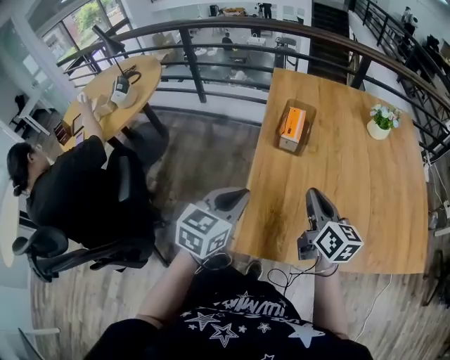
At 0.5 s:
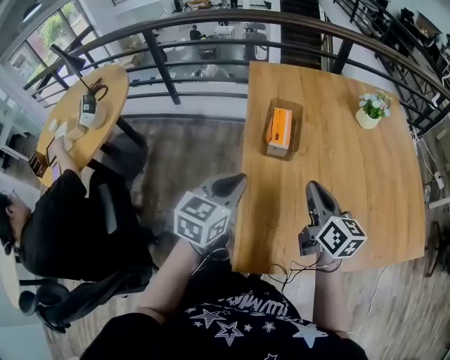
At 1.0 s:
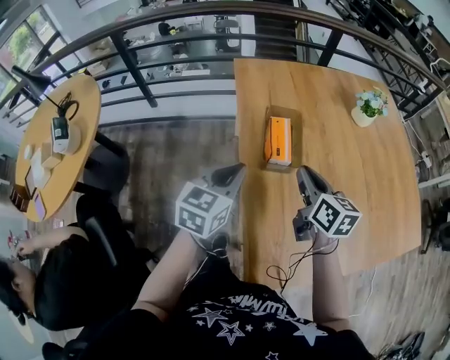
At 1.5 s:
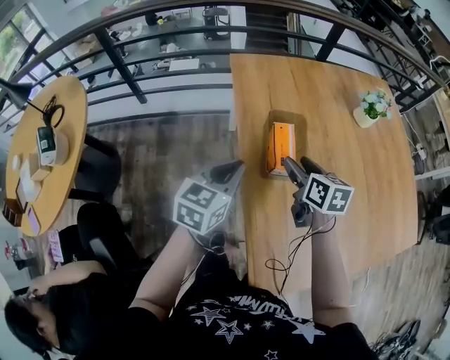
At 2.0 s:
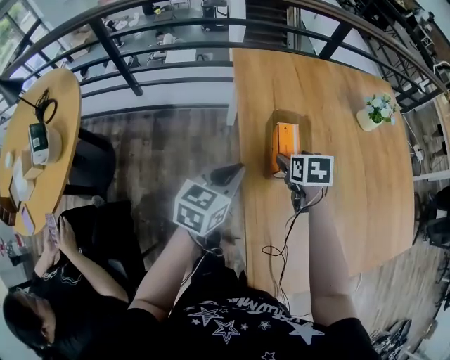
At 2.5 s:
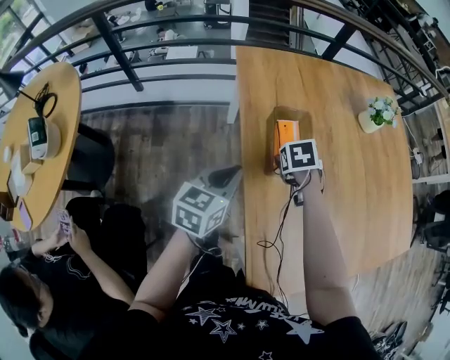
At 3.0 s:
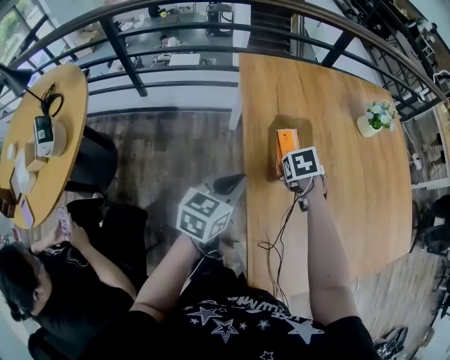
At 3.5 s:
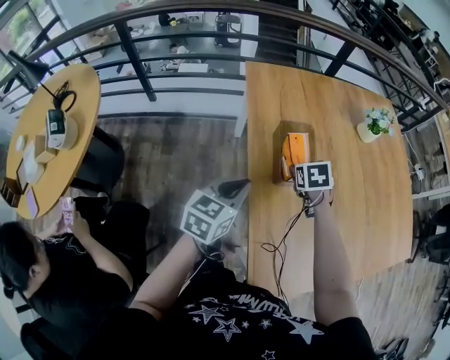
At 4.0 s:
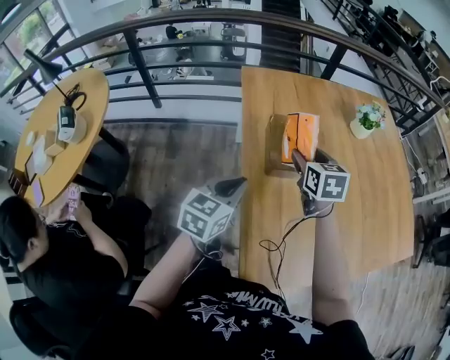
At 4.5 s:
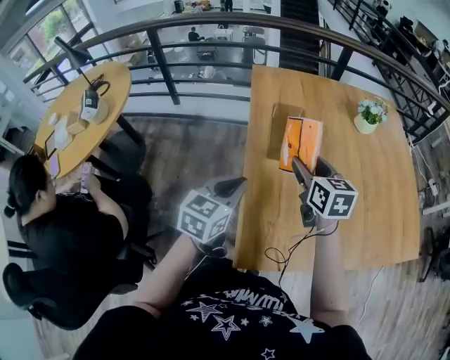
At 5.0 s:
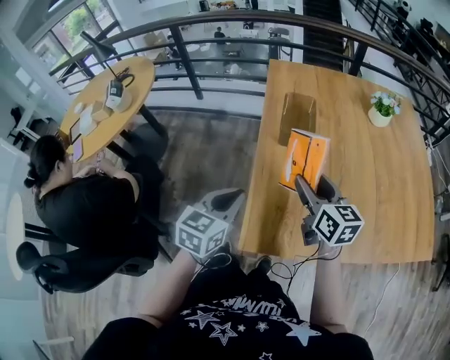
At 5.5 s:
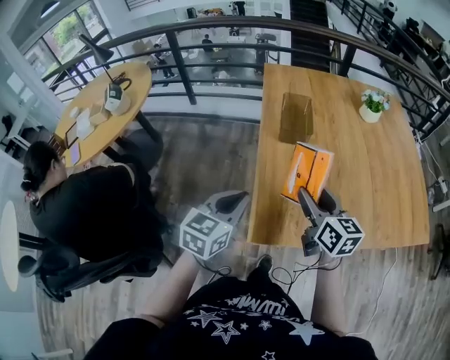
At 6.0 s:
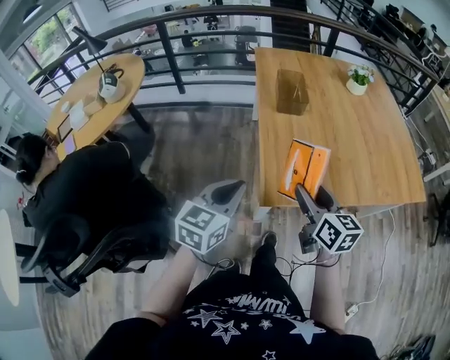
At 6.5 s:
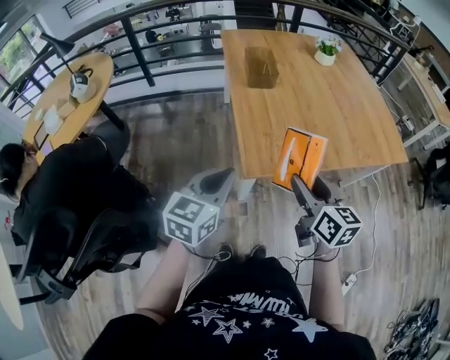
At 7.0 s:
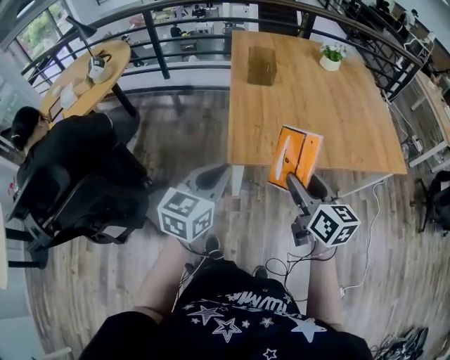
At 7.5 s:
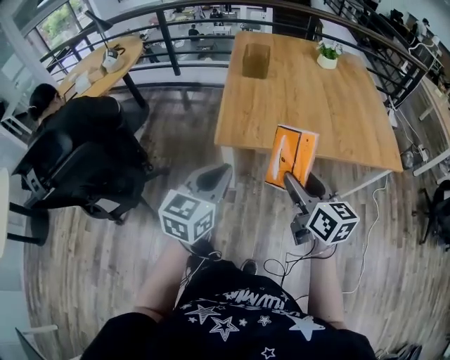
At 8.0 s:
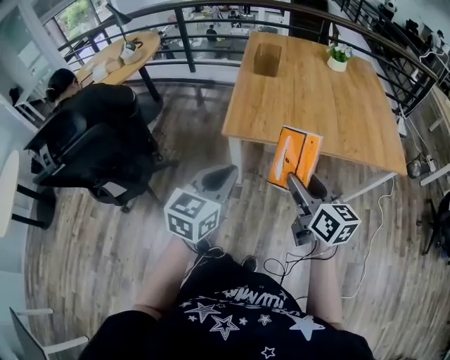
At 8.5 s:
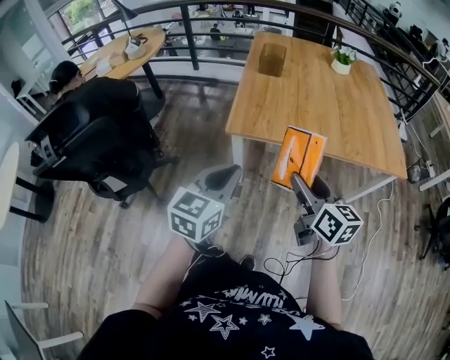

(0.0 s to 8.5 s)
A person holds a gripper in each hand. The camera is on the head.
0.0 s - 2.0 s: Both grippers move forward and to the left, approximately 35 cm. The right gripper tips its fingers downward by approximately 50 degrees, and opens up.
2.0 s - 4.0 s: The right gripper shifts some 15 cm upward, backward and to the right, and swivels roughly 20 degrees; the left gripper goes some 15 cm backward and to the right.
4.0 s - 6.5 s: The pair of grippers is taken backward, about 50 cm. The right gripper turns by about 30 degrees.
6.5 s - 8.5 s: The grippers both shift backward and to the right by some 30 cm.

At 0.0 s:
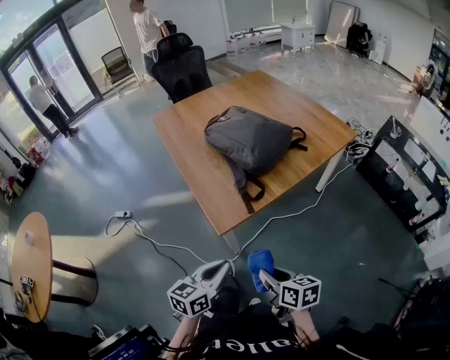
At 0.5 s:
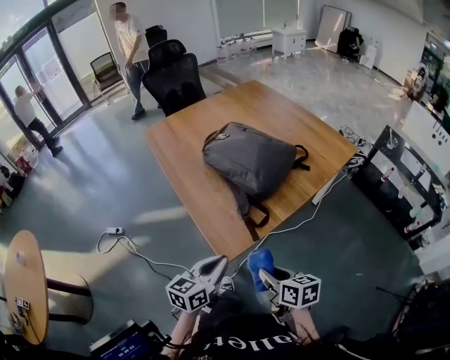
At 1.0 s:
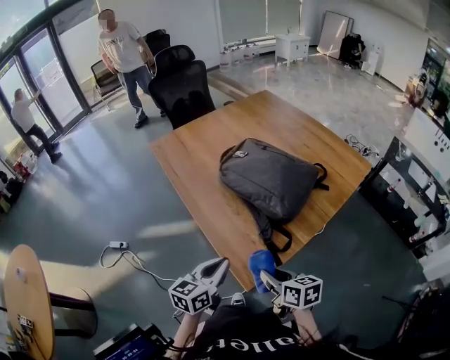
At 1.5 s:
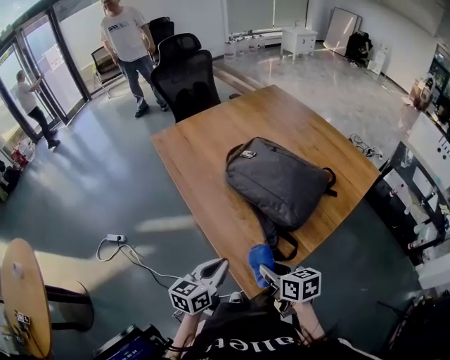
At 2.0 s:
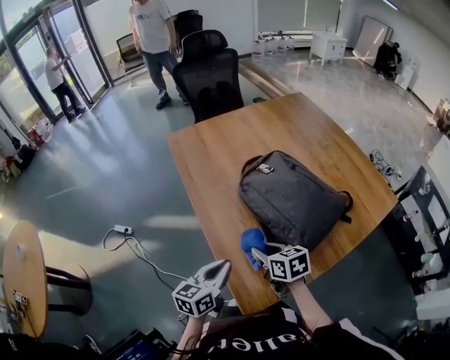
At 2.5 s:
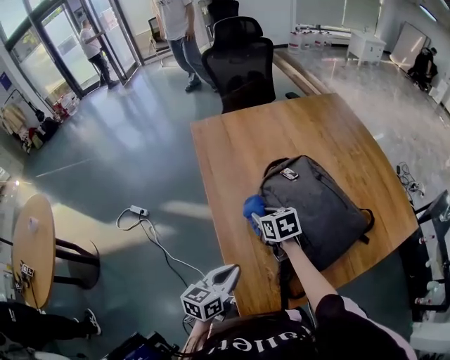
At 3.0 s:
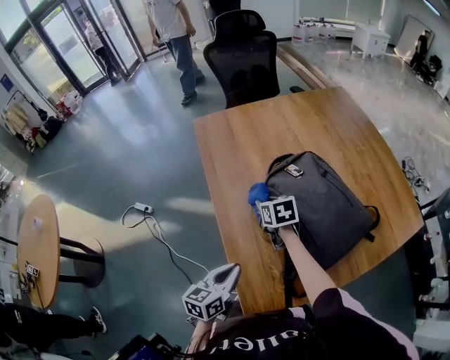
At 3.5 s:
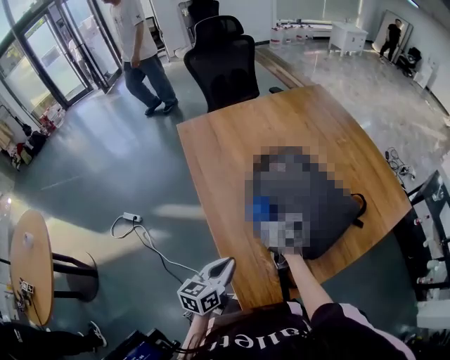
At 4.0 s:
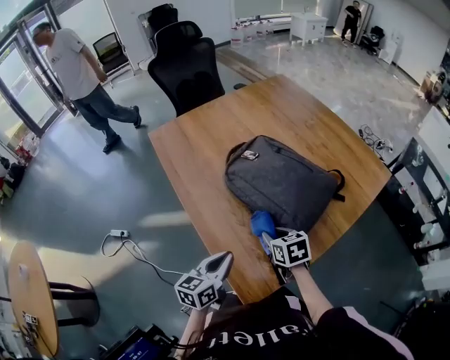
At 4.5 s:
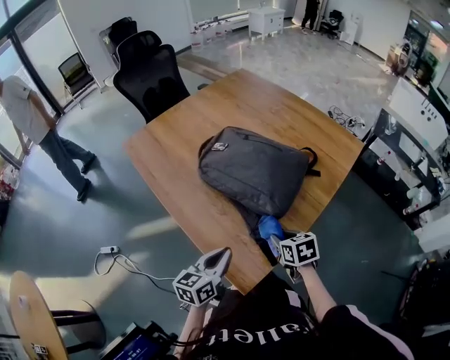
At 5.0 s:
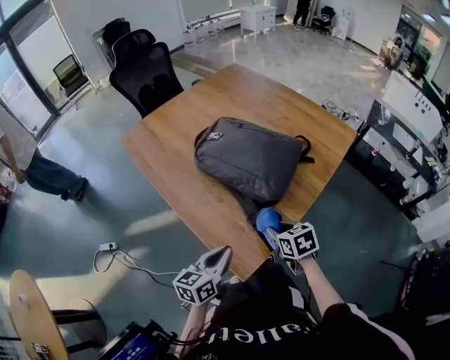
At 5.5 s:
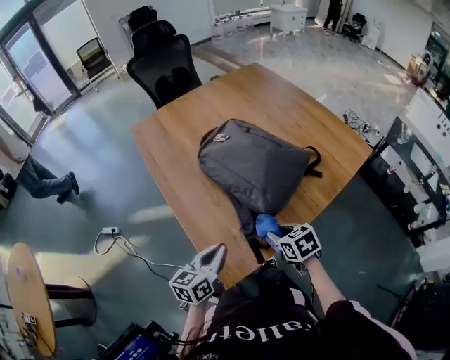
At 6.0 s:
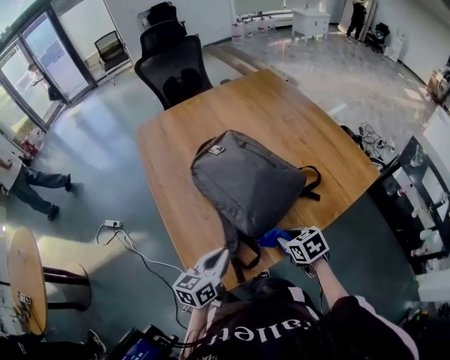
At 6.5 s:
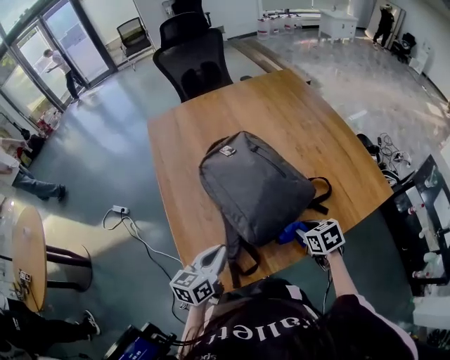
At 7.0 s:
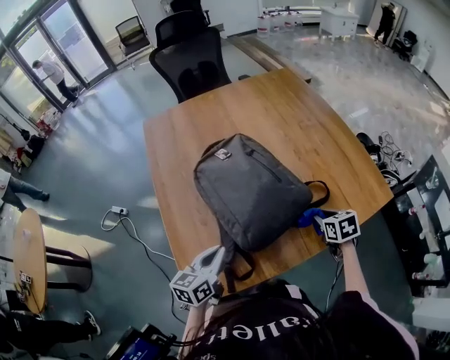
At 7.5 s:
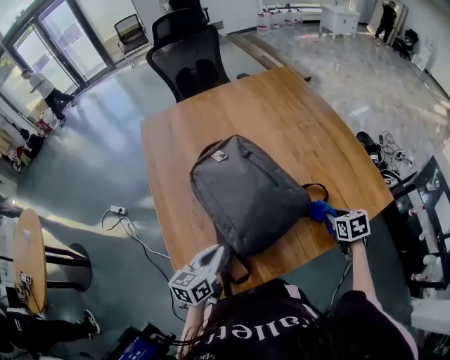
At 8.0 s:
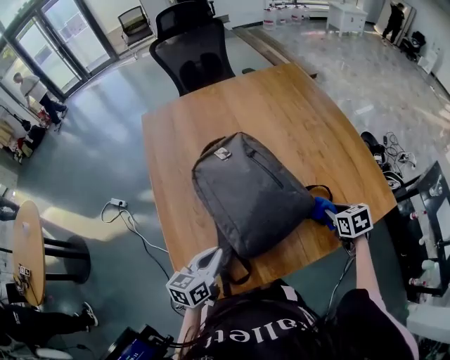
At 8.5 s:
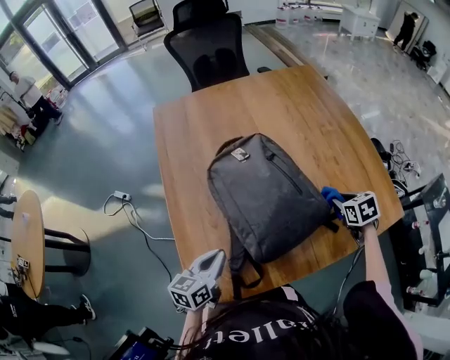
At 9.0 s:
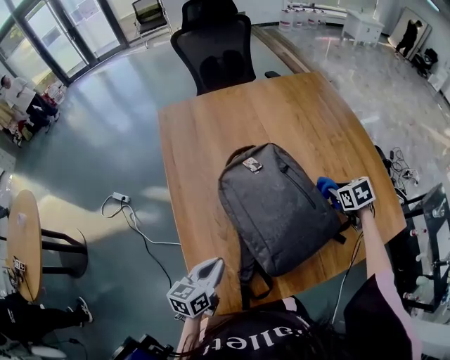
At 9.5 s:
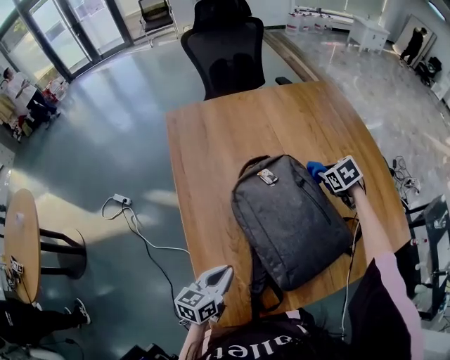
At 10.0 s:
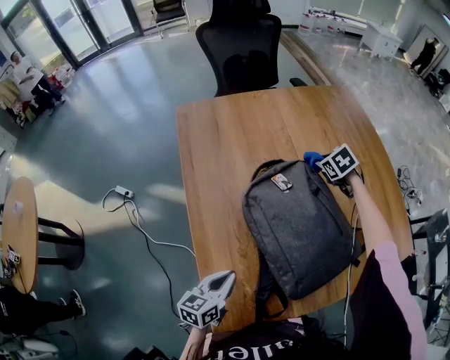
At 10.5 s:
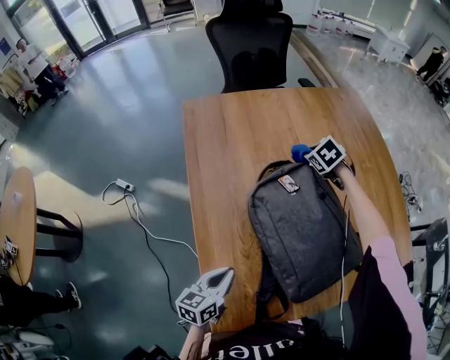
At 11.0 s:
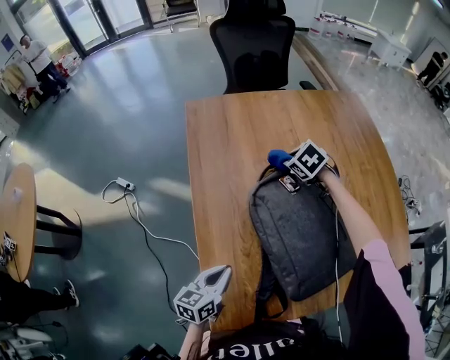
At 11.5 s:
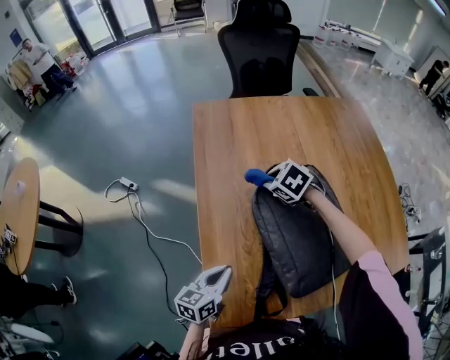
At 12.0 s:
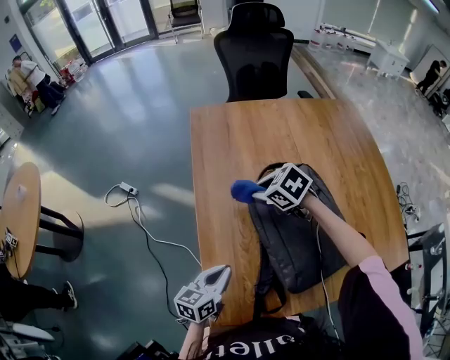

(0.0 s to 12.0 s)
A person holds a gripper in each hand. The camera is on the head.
0.0 s - 2.0 s: Both grippers travel together forward, approximately 40 cm. The right gripper rotates about 20 degrees.
2.0 s - 4.0 s: The right gripper travels to the right by some 5 cm, and goes forward and returns, some 20 cm each way.
4.0 s - 6.0 s: The grippers both shift to the right by some 20 cm.
6.0 s - 8.0 s: The left gripper goes some 5 cm forward; the right gripper heads to the right and forward, covering about 25 cm.
8.0 s - 10.0 s: The left gripper moves to the left, about 15 cm. Meanwhile the right gripper heads forward and to the left, covering roughly 40 cm, and turns by approximately 30 degrees.
10.0 s - 12.0 s: The right gripper moves some 30 cm, and turns by about 30 degrees.

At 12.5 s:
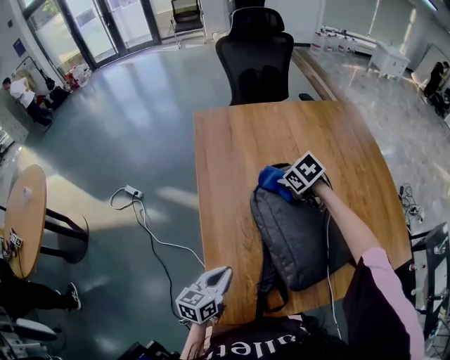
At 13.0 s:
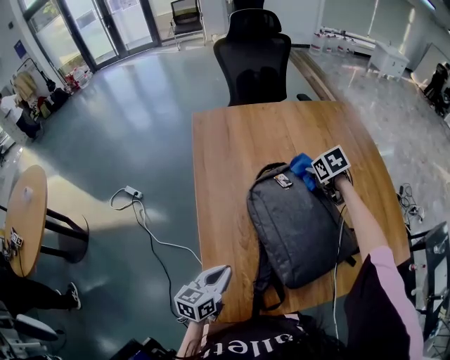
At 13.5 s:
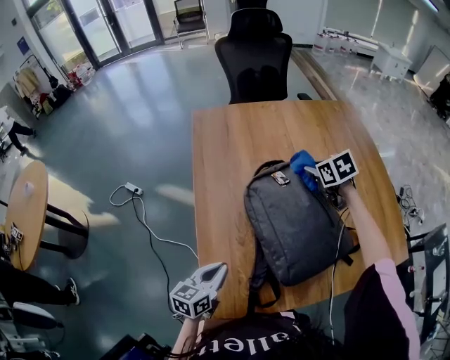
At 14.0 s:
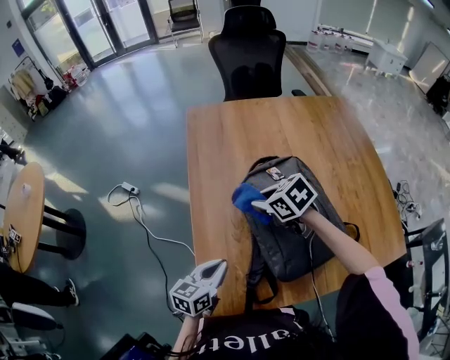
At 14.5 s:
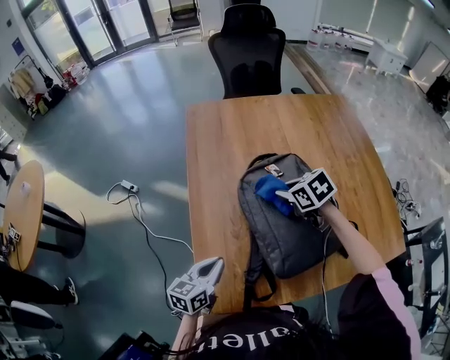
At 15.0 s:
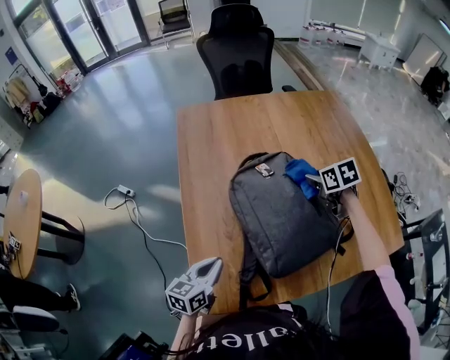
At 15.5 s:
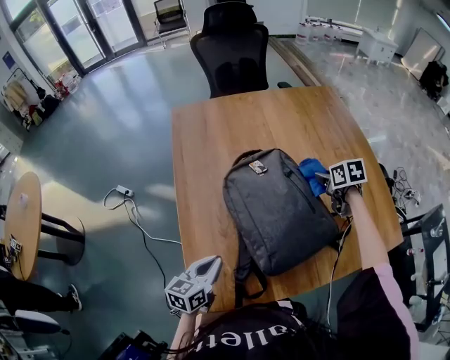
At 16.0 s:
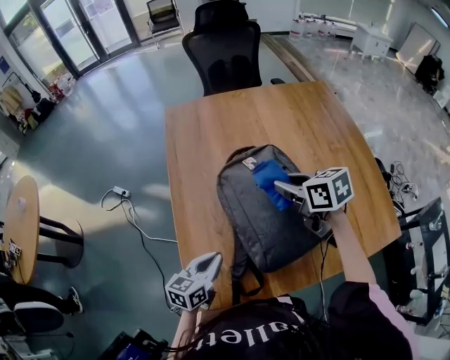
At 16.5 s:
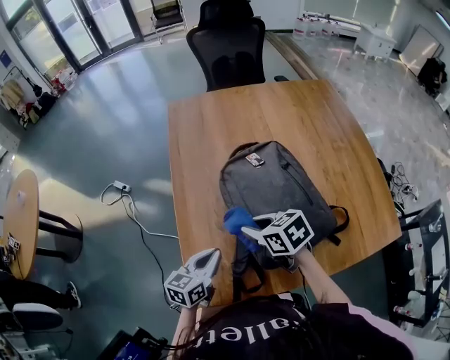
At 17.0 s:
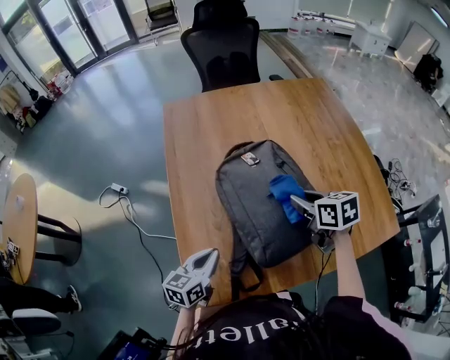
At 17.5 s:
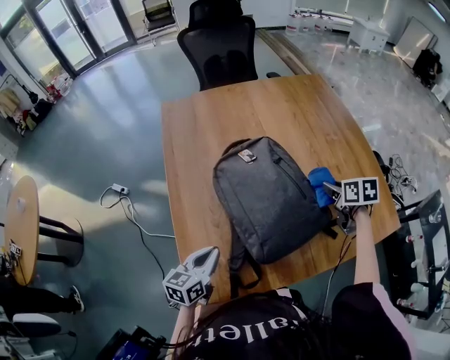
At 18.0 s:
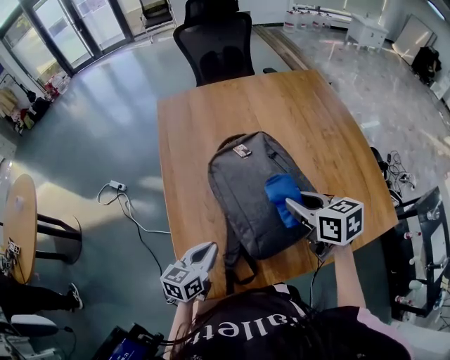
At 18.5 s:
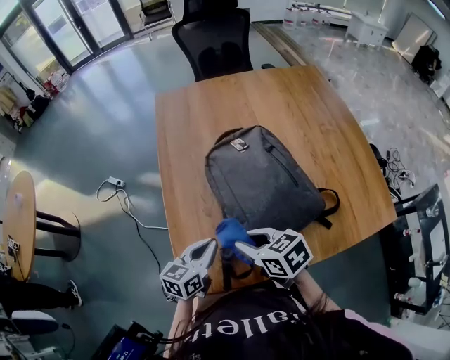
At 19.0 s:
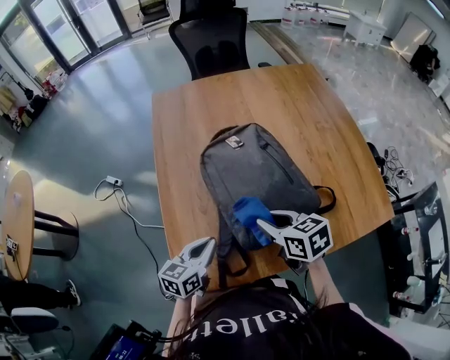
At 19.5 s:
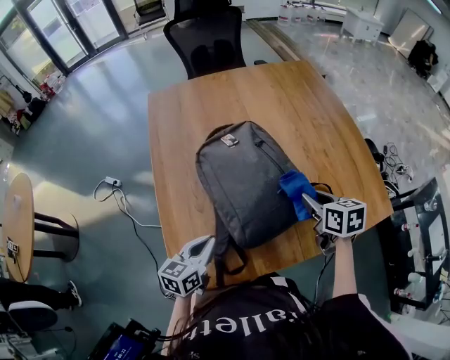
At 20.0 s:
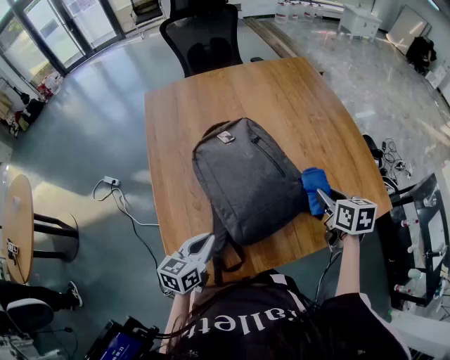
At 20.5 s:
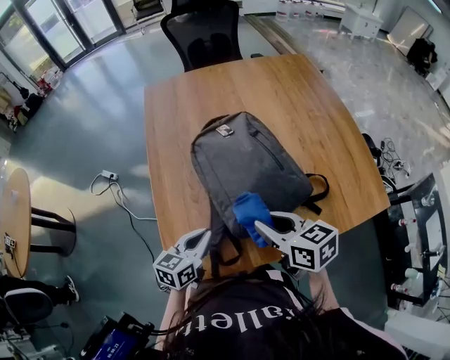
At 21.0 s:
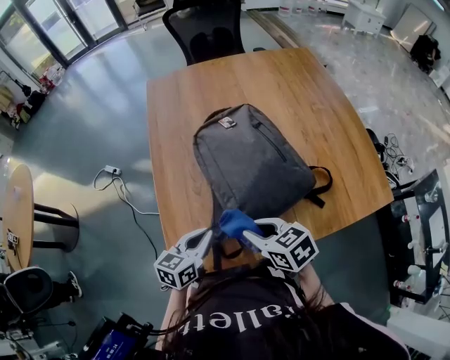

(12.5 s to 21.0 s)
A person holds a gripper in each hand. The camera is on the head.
12.5 s - 14.5 s: The right gripper goes left and right, approximately 20 cm each way, reversing 2 times.
14.5 s - 16.5 s: The right gripper shifts roughly 15 cm backward, and reaches approximately 25 cm to the right, then returns.
16.5 s - 19.0 s: The right gripper moves left and right over roughly 30 cm, changing direction 2 times. Meanwhile the left gripper moves roughly 5 cm.
19.0 s - 21.0 s: The right gripper goes approximately 10 cm backward, and goes to the right and returns, about 20 cm each way.
